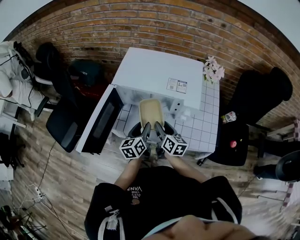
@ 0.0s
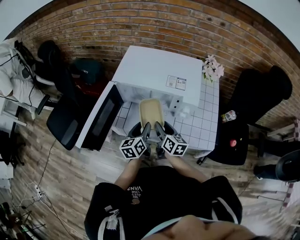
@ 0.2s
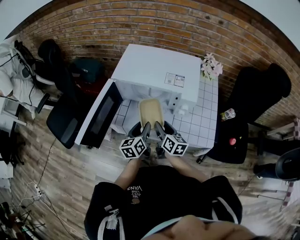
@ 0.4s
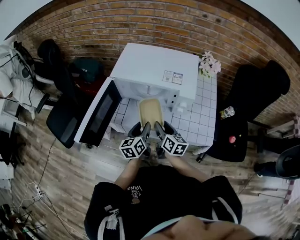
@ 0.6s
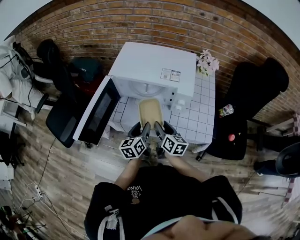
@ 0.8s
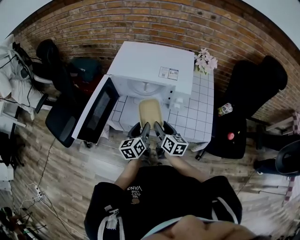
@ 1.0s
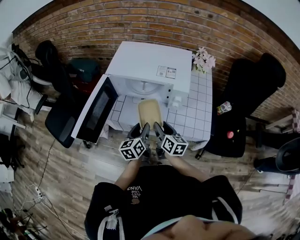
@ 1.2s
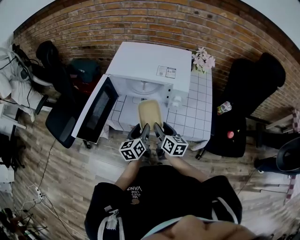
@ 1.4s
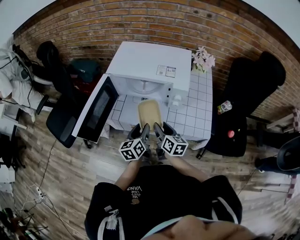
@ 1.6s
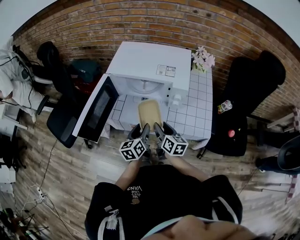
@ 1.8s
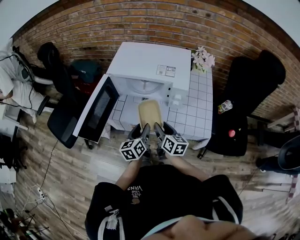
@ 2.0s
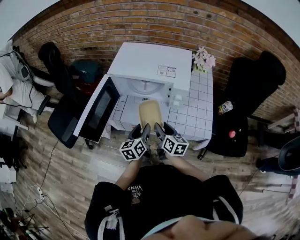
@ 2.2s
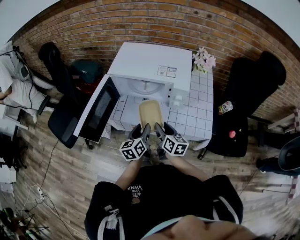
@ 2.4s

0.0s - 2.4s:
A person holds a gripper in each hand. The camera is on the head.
0.0s - 1.2s: The two grippers go approximately 10 cm backward.
1.2s - 2.4s: Neither gripper changes place.

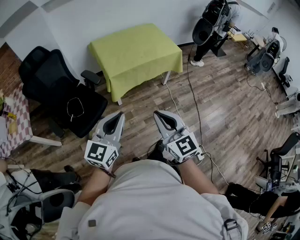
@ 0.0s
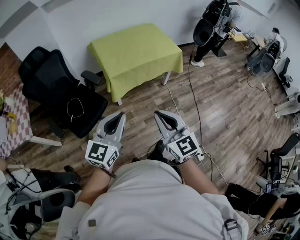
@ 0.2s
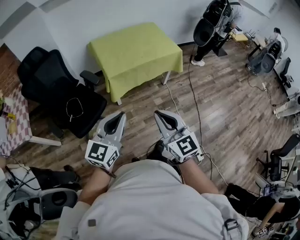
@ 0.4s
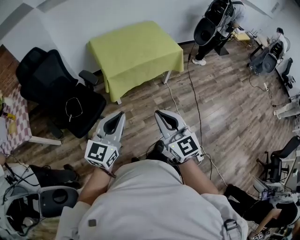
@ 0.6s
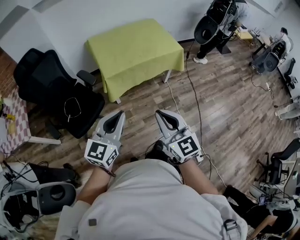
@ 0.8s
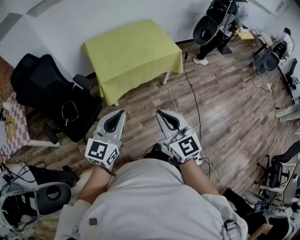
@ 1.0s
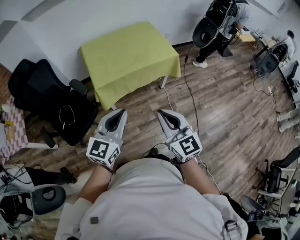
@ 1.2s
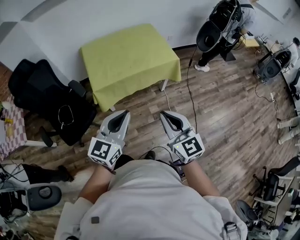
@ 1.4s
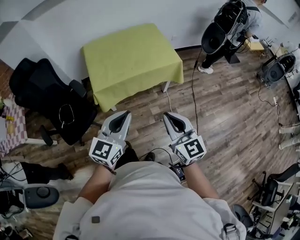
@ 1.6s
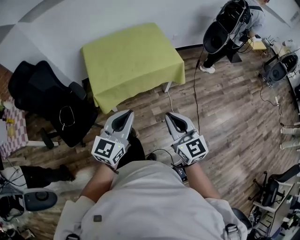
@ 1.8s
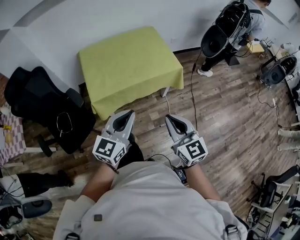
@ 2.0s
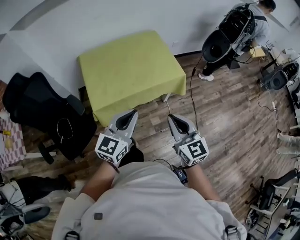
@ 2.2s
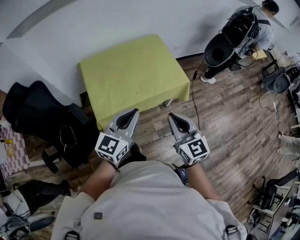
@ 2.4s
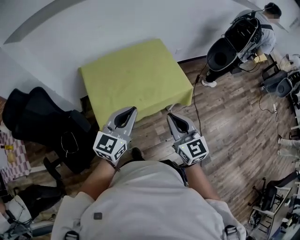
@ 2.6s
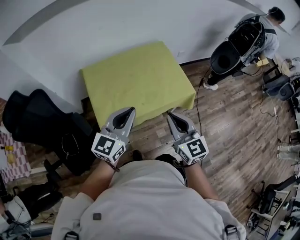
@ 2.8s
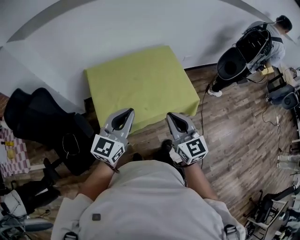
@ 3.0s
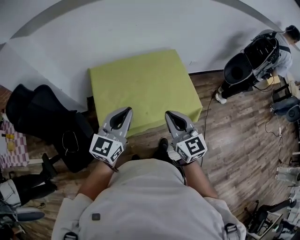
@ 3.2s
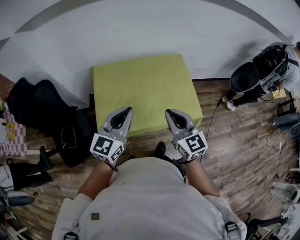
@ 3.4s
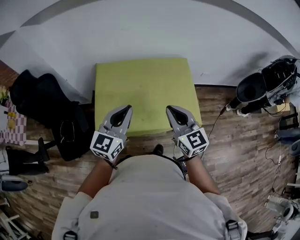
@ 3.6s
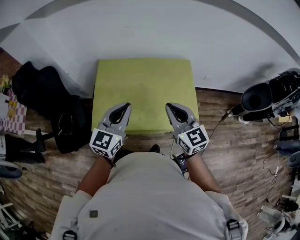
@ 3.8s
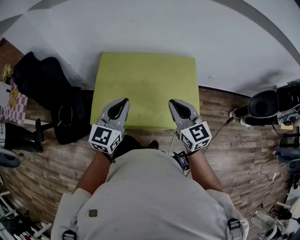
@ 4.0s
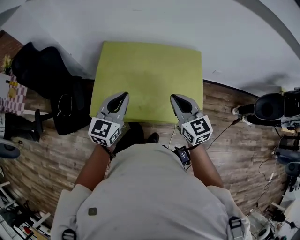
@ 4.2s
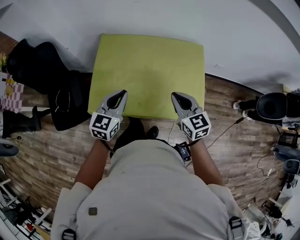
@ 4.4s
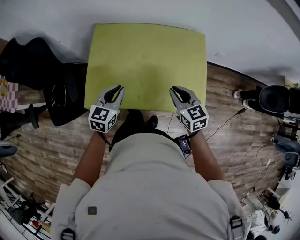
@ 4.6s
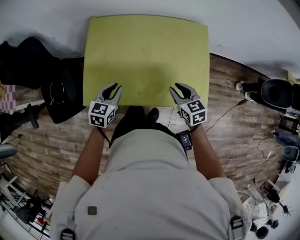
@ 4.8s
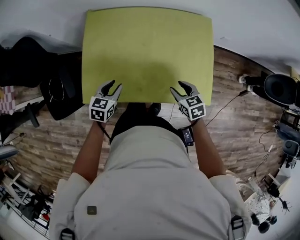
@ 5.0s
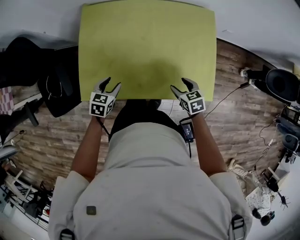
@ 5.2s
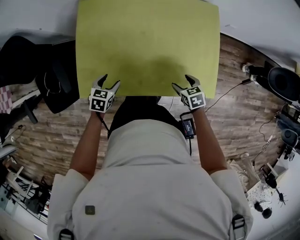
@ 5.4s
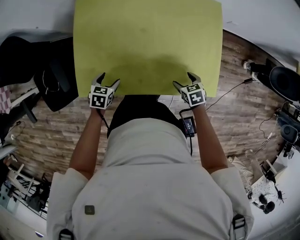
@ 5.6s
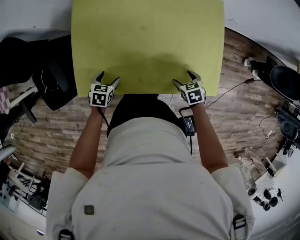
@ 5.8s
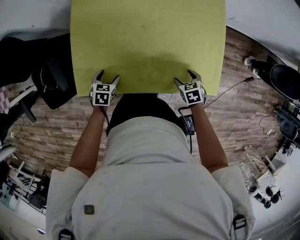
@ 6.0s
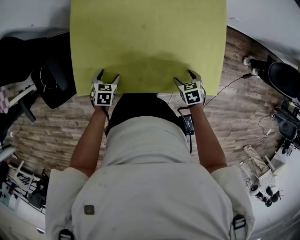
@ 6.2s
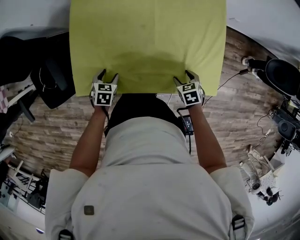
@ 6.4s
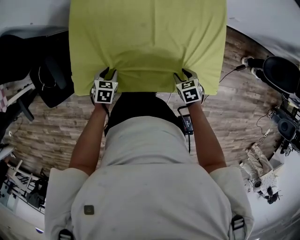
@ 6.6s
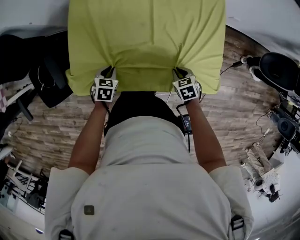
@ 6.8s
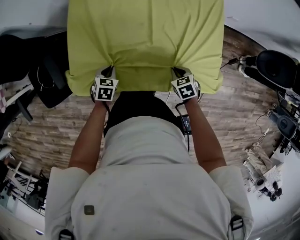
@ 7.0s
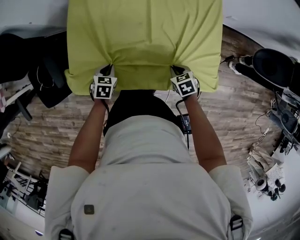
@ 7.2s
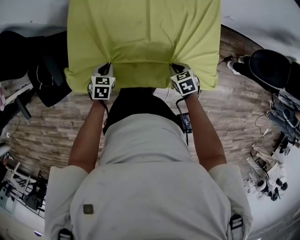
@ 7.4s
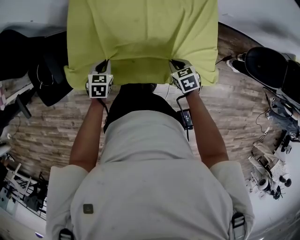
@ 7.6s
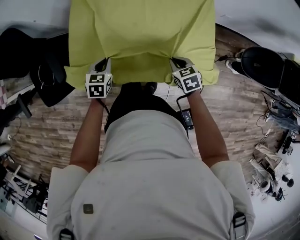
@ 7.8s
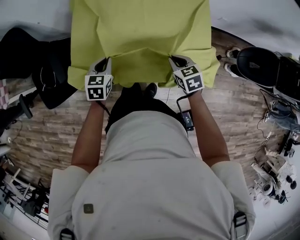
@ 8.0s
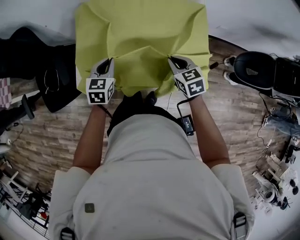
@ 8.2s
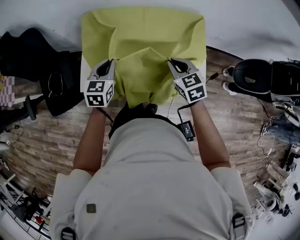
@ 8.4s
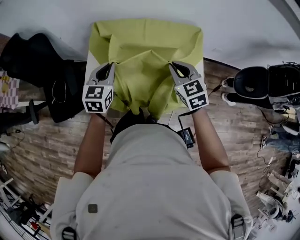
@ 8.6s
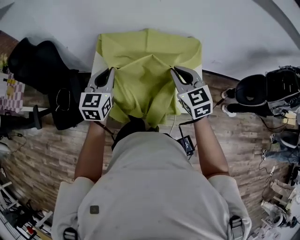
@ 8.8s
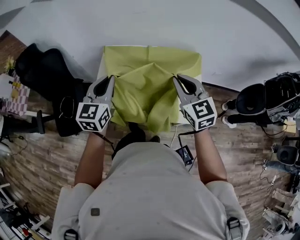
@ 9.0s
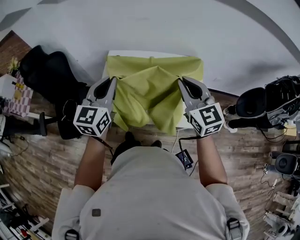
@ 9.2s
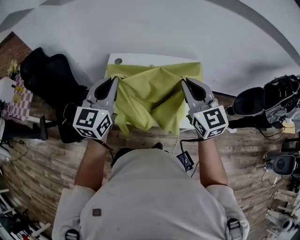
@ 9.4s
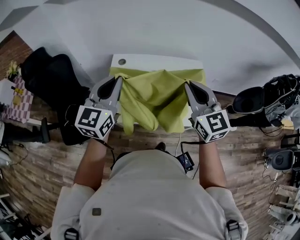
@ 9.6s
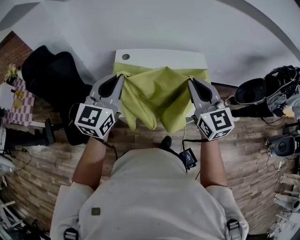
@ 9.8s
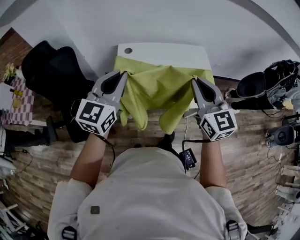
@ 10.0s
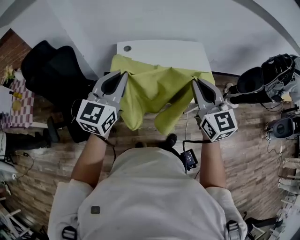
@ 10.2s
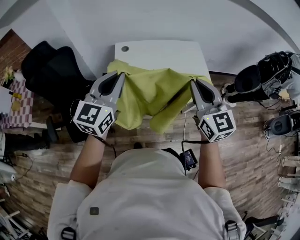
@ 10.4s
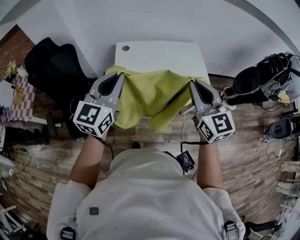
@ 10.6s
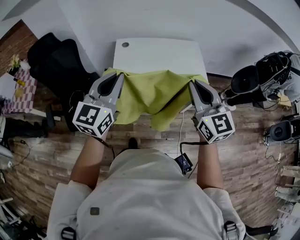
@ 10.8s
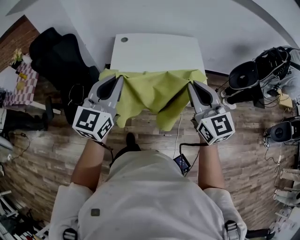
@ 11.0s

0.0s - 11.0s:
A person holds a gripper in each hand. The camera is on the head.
0.0s - 1.6s: The left gripper goes roughly 30 cm forward and to the right. Meanwhile the right gripper shifts about 30 cm to the right and forward.
1.6s - 3.2s: Both grippers travel together forward, roughly 40 cm.
3.2s - 4.8s: The right gripper is displaced downward, forward and to the right by some 30 cm, and angles its fingers downward, by approximately 30 degrees. Meanwhile the left gripper travels downward and forward by some 30 cm, and angles its fingers downward, by about 30 degrees.
4.8s - 6.2s: Both grippers travel together downward, roughly 20 cm. The right gripper angles its fingers downward, by about 30 degrees, and opens up. Meanwhile the left gripper rotates approximately 30 degrees, and opens its fingers.
6.2s - 7.8s: Both grippers travel together upward, approximately 10 cm. The left gripper closes its fingers; the right gripper closes its fingers.
7.8s - 9.4s: The grippers both shift upward by roughly 40 cm. The right gripper points its fingers some 50 degrees further upward. The left gripper tilts its fingers roughly 50 degrees upward.
9.4s - 11.0s: Both grippers travel together backward, roughly 25 cm.

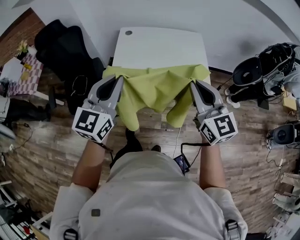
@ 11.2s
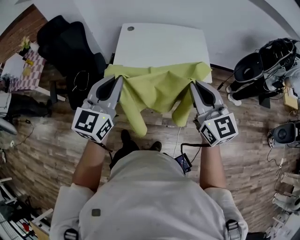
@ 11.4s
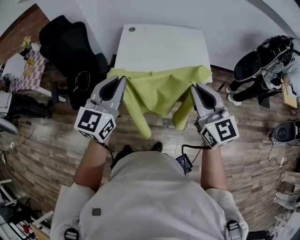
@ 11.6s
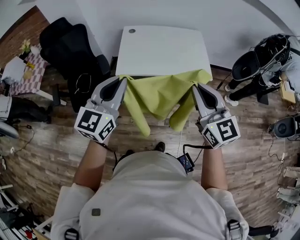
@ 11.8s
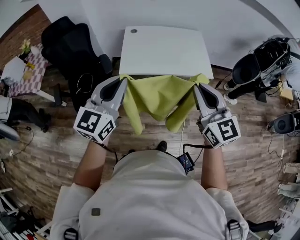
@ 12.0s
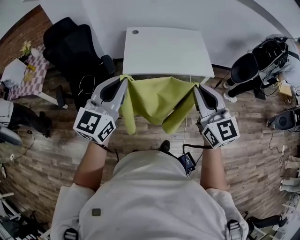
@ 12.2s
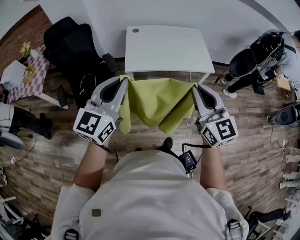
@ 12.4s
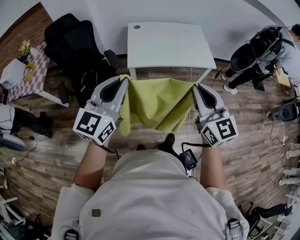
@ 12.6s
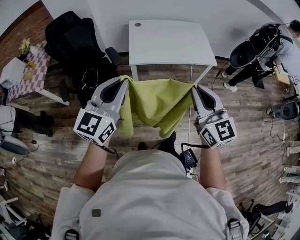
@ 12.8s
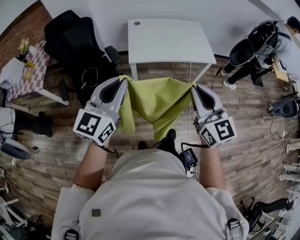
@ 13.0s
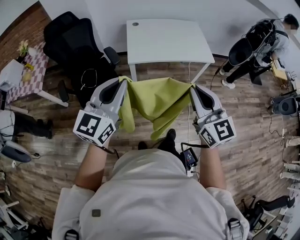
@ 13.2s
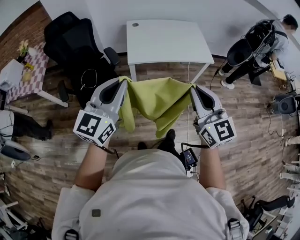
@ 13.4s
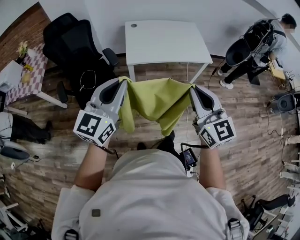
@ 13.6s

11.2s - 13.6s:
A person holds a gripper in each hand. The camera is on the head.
11.2s - 12.4s: The right gripper goes roughly 20 cm backward and to the left. Meanwhile the left gripper heads to the left and backward, covering approximately 20 cm.
12.4s - 13.6s: The two grippers go approximately 10 cm backward and to the left.

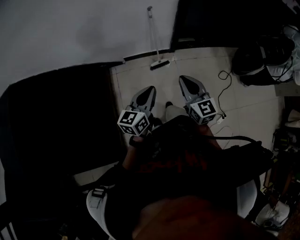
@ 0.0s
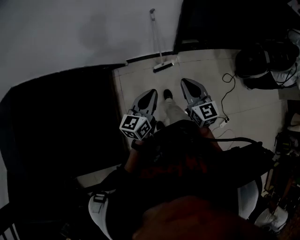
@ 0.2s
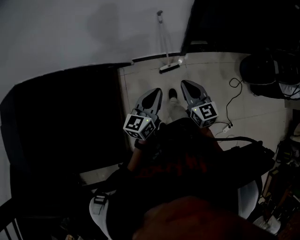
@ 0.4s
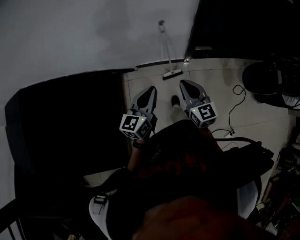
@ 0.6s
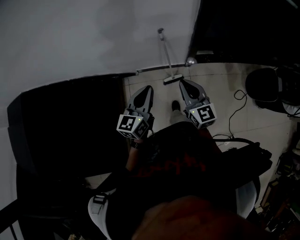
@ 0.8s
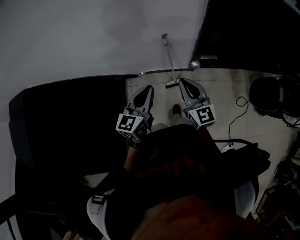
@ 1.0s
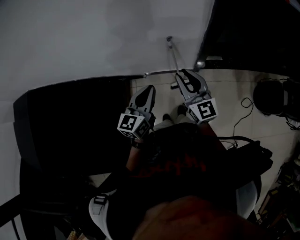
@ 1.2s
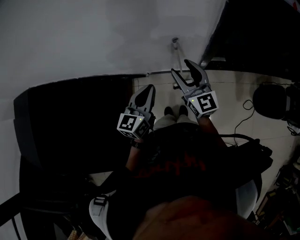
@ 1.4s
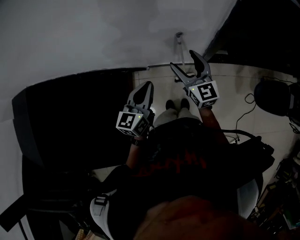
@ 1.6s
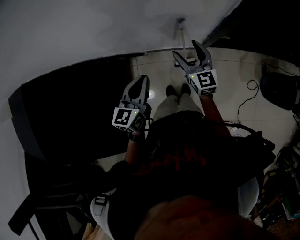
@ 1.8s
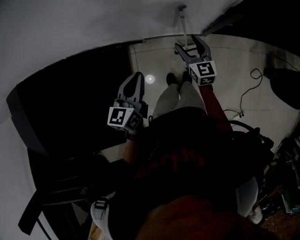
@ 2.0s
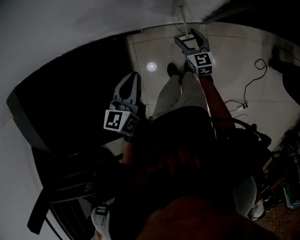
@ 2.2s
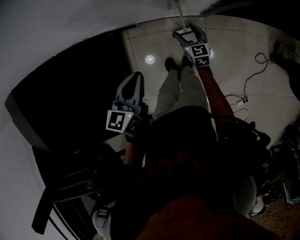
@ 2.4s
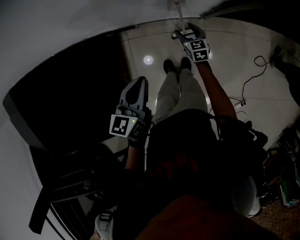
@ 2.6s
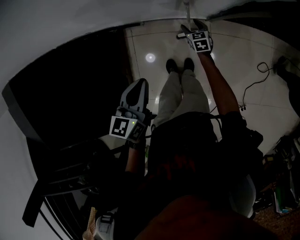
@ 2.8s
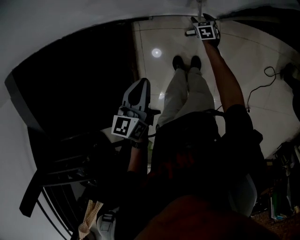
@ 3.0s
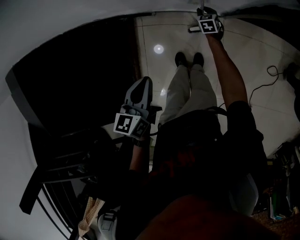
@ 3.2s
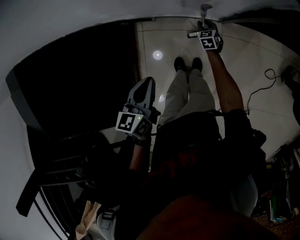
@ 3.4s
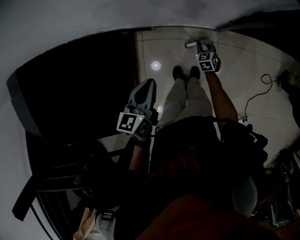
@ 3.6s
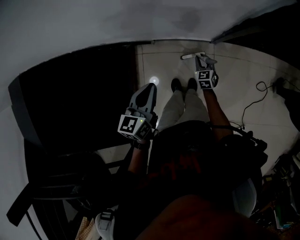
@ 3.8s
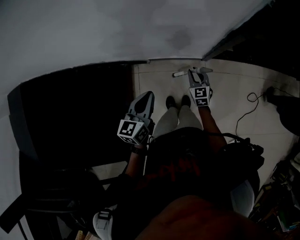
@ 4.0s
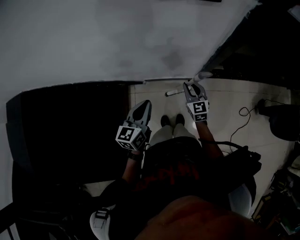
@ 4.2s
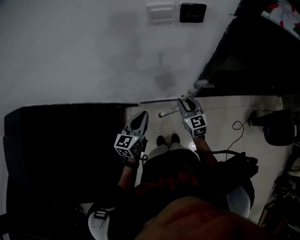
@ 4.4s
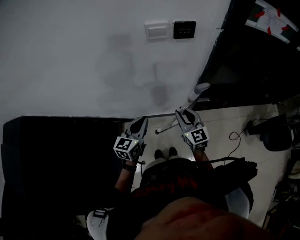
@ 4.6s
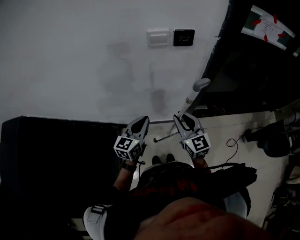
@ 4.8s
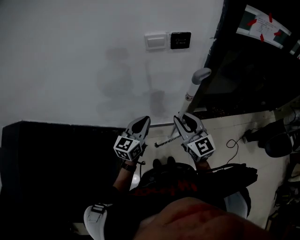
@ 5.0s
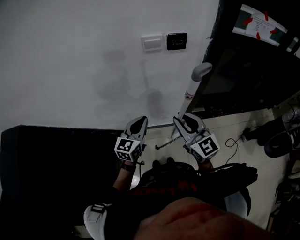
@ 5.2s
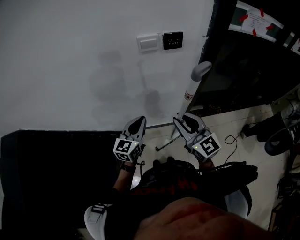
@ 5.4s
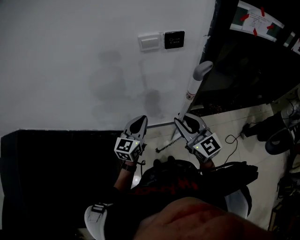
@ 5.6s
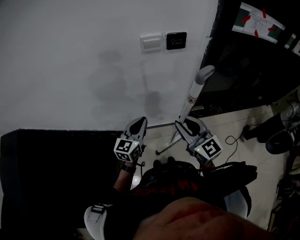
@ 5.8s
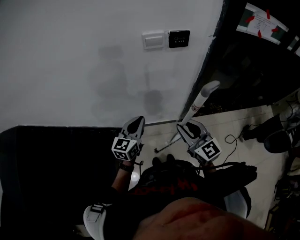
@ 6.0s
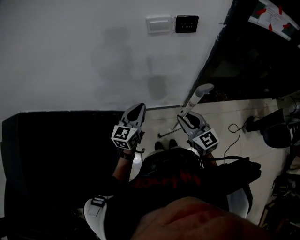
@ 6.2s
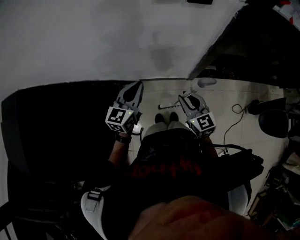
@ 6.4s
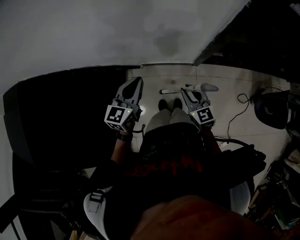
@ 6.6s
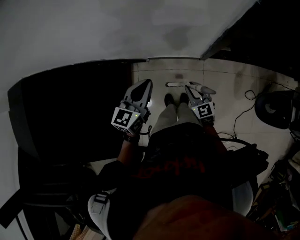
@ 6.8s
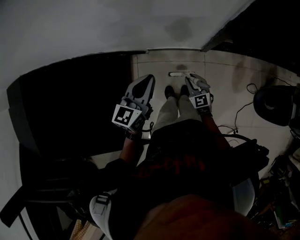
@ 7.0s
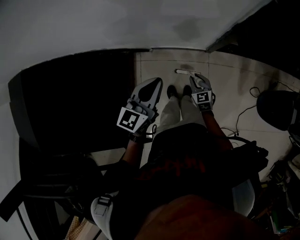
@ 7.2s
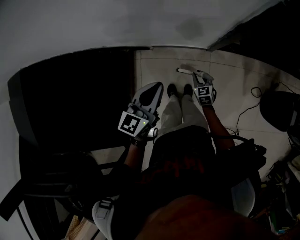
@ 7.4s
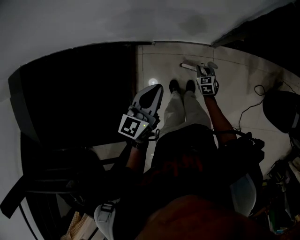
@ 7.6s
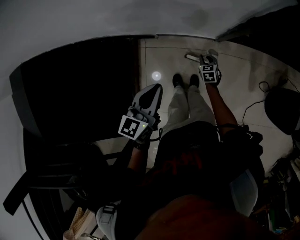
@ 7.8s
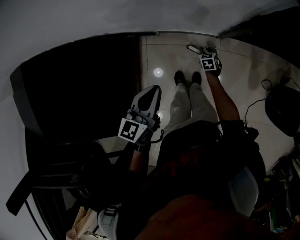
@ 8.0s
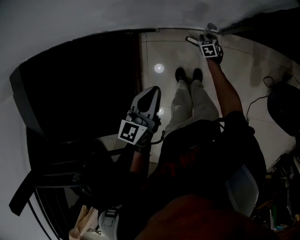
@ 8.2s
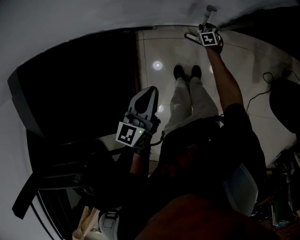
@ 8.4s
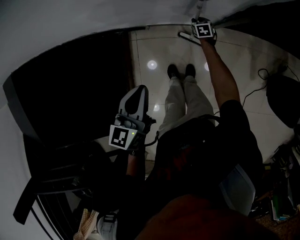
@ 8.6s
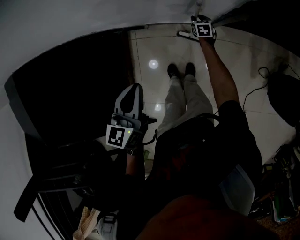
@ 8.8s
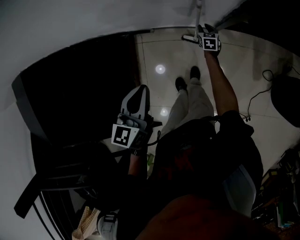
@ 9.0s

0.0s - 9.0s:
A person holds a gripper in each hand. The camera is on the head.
0.0s - 1.6s: Both grippers travel together forward, roughly 40 cm. The right gripper opens.
1.6s - 3.0s: The right gripper travels downward by roughly 50 cm, and points its fingers approximately 50 degrees further downward, while the left gripper shifts about 20 cm downward, and swivels about 20 degrees.
3.0s - 4.4s: The right gripper travels upward by approximately 40 cm, angles its fingers upward, by about 30 degrees, and closes its fingers. Meanwhile the left gripper shifts some 15 cm upward, and changes its angle by roughly 20 degrees.
4.4s - 6.0s: The right gripper moves upward and backward, some 20 cm. The left gripper is displaced upward by about 5 cm.
6.0s - 7.6s: The left gripper travels downward and backward by some 10 cm; the right gripper is displaced downward by approximately 50 cm, and angles its fingers downward, by about 40 degrees.
7.6s - 9.0s: The right gripper travels forward and downward by some 15 cm.
